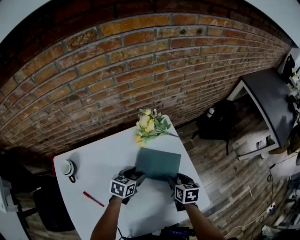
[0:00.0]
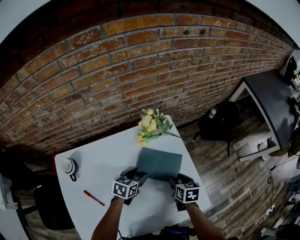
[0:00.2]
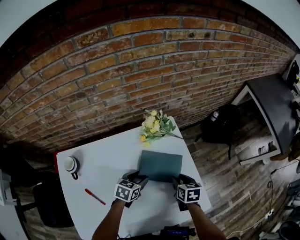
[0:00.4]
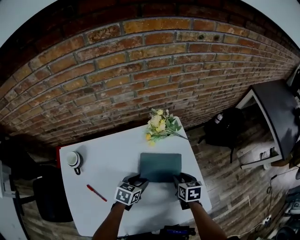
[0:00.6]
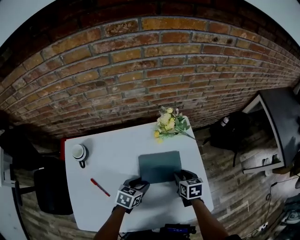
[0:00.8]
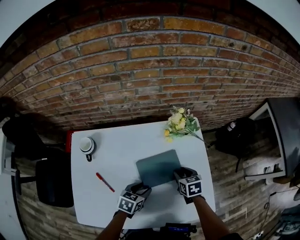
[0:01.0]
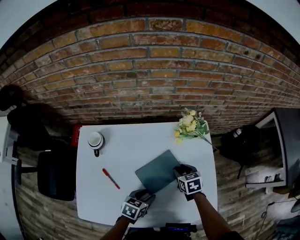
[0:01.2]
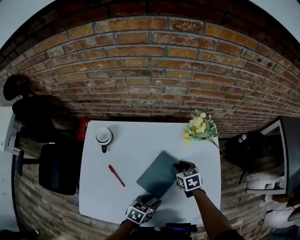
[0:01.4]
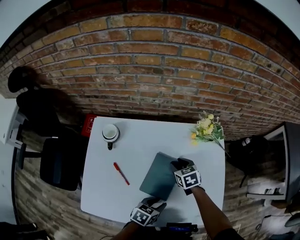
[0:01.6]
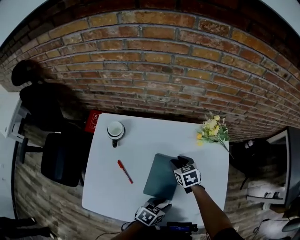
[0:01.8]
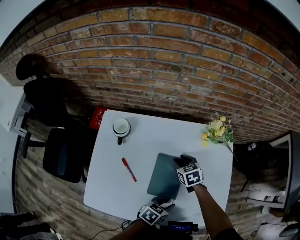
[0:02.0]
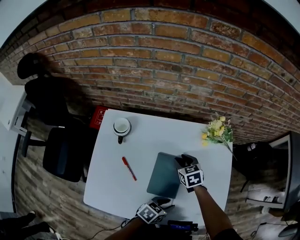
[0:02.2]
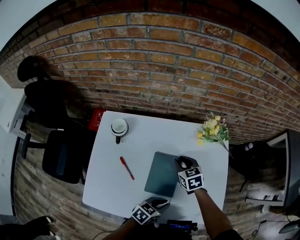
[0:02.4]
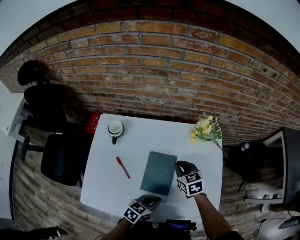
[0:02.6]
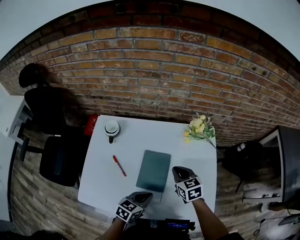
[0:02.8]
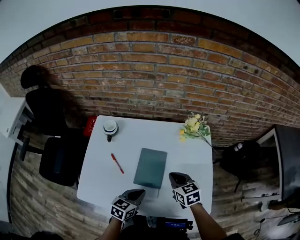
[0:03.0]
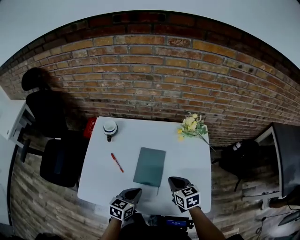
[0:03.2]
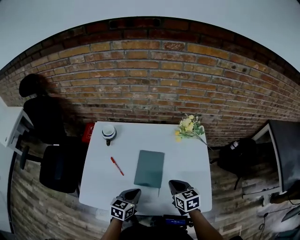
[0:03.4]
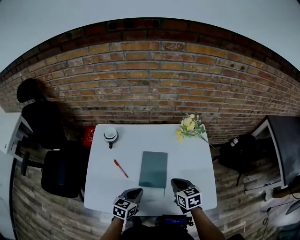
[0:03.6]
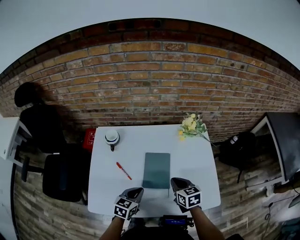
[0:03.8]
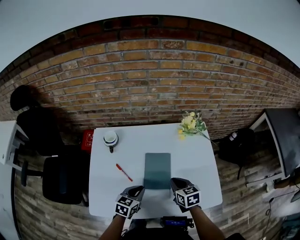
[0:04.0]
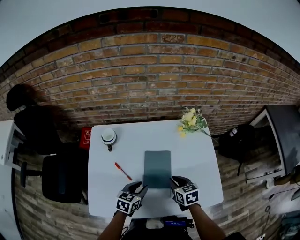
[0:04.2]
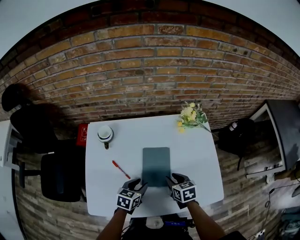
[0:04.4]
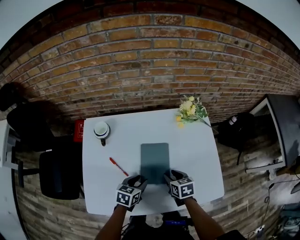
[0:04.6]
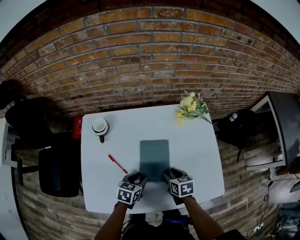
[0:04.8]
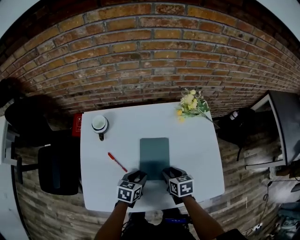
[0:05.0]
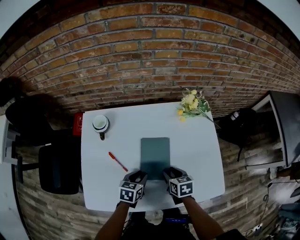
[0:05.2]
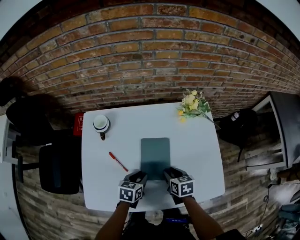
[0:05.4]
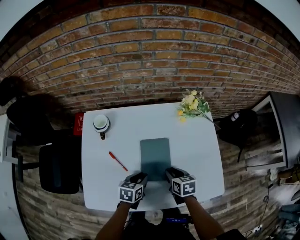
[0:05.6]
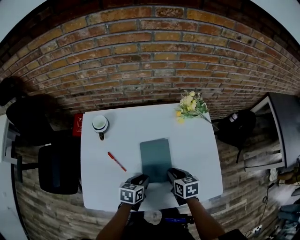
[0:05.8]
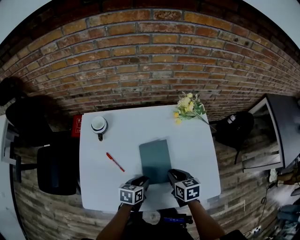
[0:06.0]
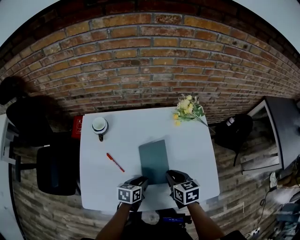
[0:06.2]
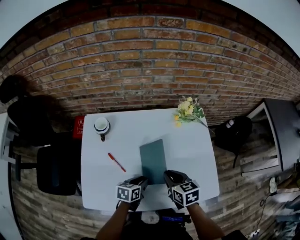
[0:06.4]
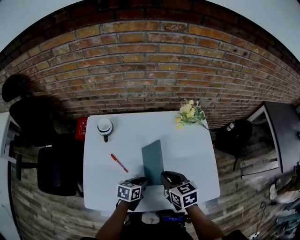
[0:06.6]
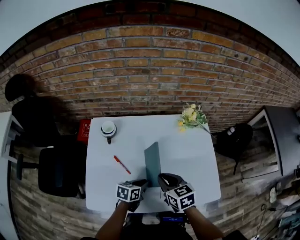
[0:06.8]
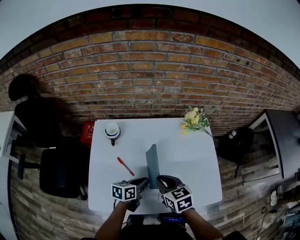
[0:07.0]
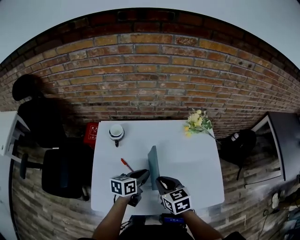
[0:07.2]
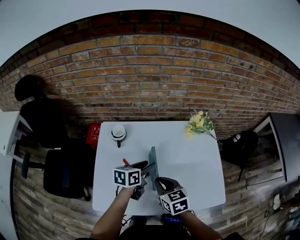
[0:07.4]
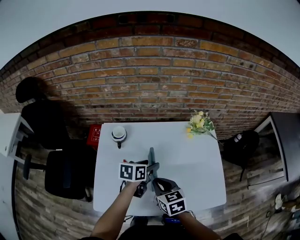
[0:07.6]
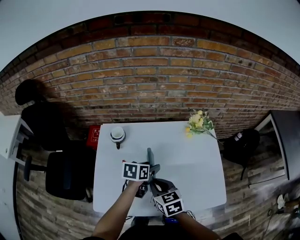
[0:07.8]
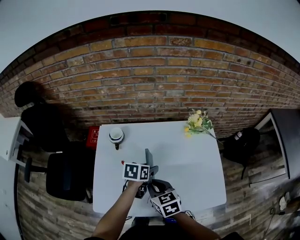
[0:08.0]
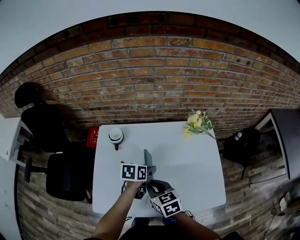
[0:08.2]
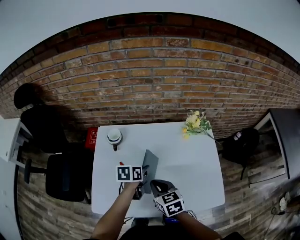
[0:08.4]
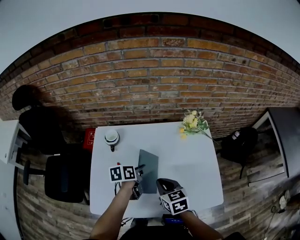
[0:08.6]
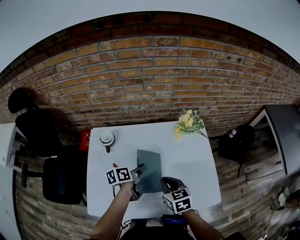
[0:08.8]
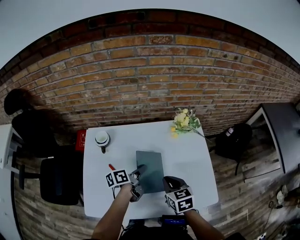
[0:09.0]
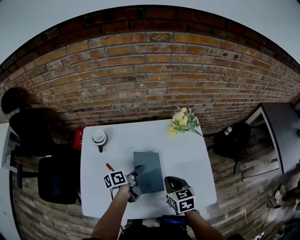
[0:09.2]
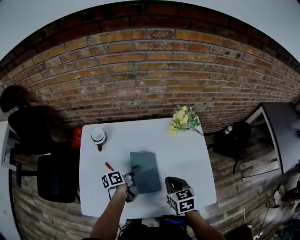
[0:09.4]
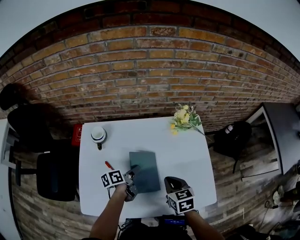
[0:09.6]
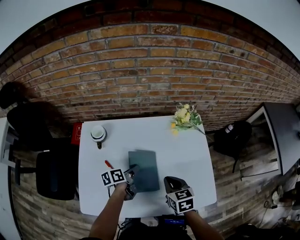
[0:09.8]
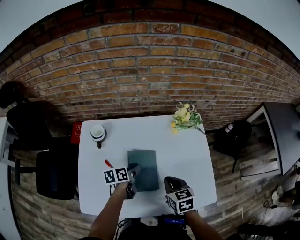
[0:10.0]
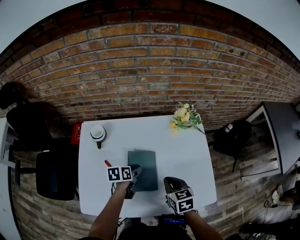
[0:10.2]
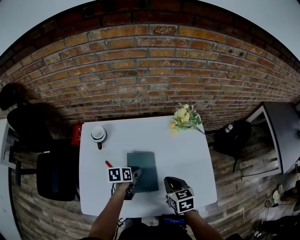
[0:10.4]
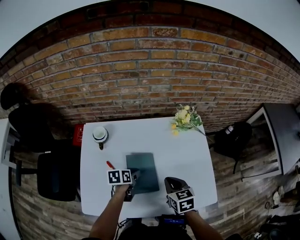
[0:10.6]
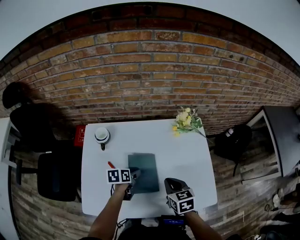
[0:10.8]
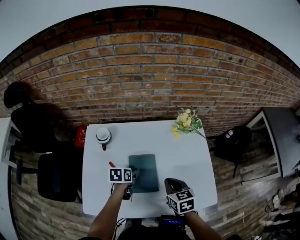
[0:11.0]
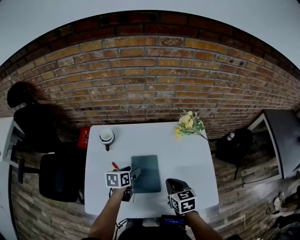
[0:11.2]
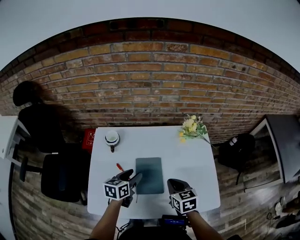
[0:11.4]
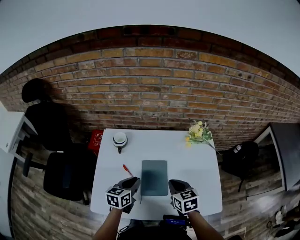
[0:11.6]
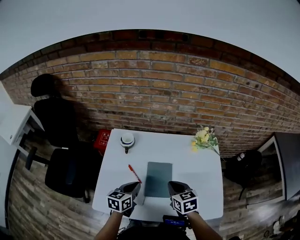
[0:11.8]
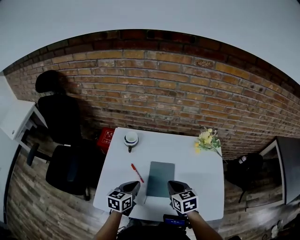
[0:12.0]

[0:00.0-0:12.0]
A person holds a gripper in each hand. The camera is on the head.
0:00.0 to 0:01.6: The right gripper shifts approximately 20 cm to the left, and twists about 40 degrees counterclockwise, seen from behind, while the left gripper is displaced backward by some 20 cm.
0:01.6 to 0:03.0: The left gripper heads upward, covering about 5 cm, turns by approximately 20 degrees, and closes its fingers. The right gripper moves backward, upward and to the right, roughly 15 cm, and closes its fingers.
0:03.0 to 0:04.4: The left gripper moves to the left and forward, approximately 10 cm, and opens its fingers. Meanwhile the right gripper shifts about 5 cm downward, swivels roughly 20 degrees, and opens.
0:04.4 to 0:06.0: There are only small adjustments of the grippers.
0:06.0 to 0:07.6: The left gripper moves upward, forward and to the left, some 15 cm, and opens up; the right gripper moves to the left and upward, about 20 cm.
0:07.6 to 0:09.0: The right gripper shifts some 10 cm to the right. The left gripper moves roughly 5 cm, swivels approximately 30 degrees, and closes up.
0:09.0 to 0:10.4: The left gripper shifts roughly 10 cm downward, changes its angle by approximately 30 degrees, and opens up.
0:10.4 to 0:12.0: The left gripper is displaced upward, backward and to the left by about 15 cm, changes its angle by some 40 degrees, and closes its fingers. Meanwhile the right gripper shifts roughly 10 cm to the left.

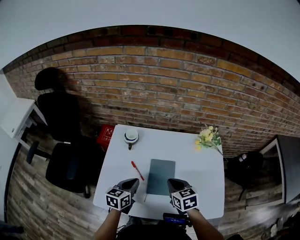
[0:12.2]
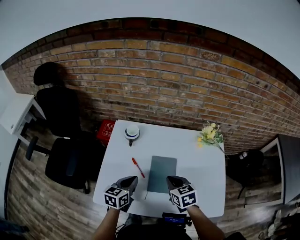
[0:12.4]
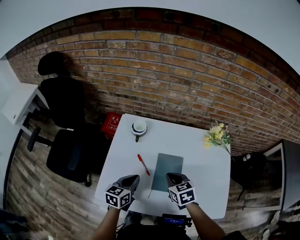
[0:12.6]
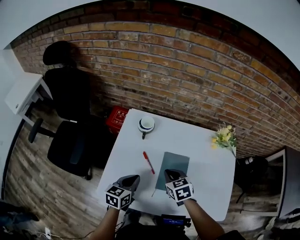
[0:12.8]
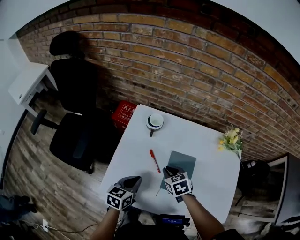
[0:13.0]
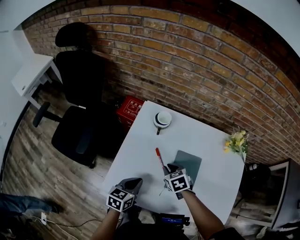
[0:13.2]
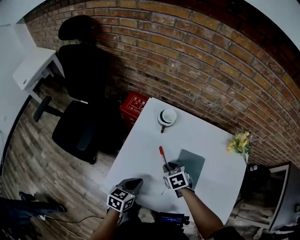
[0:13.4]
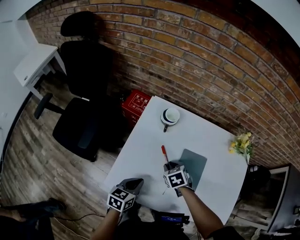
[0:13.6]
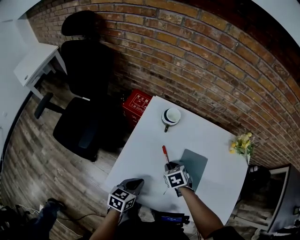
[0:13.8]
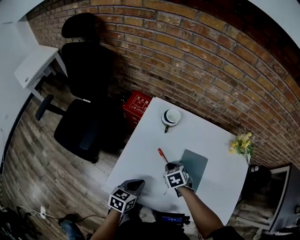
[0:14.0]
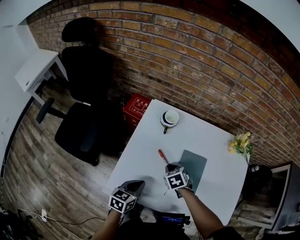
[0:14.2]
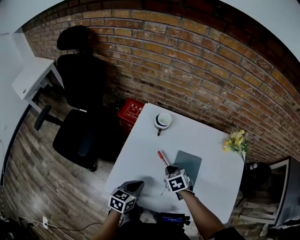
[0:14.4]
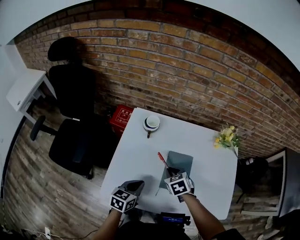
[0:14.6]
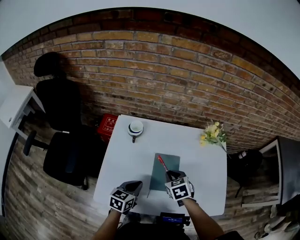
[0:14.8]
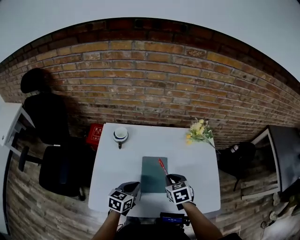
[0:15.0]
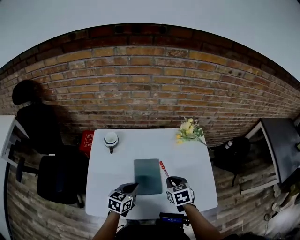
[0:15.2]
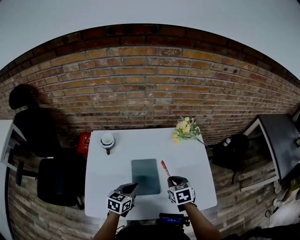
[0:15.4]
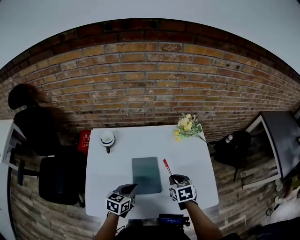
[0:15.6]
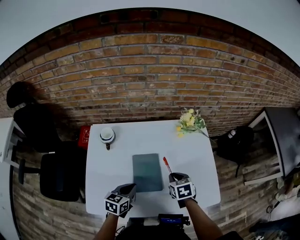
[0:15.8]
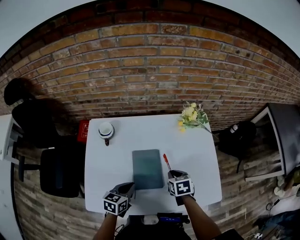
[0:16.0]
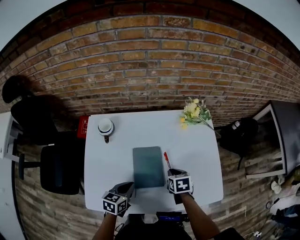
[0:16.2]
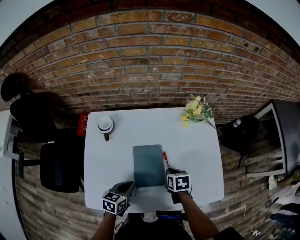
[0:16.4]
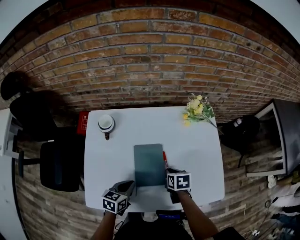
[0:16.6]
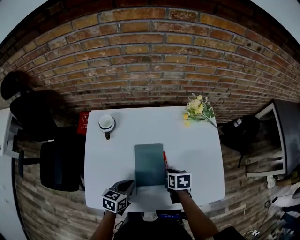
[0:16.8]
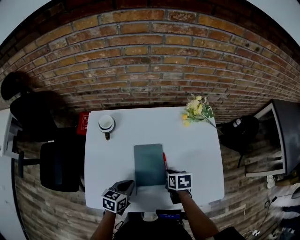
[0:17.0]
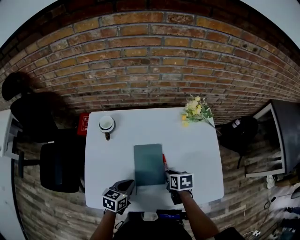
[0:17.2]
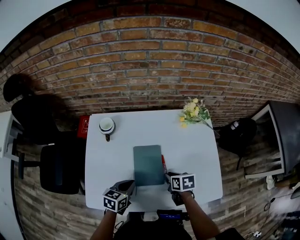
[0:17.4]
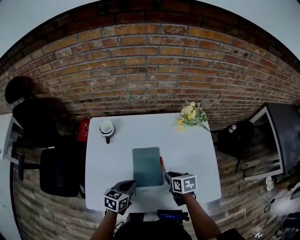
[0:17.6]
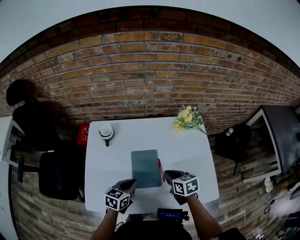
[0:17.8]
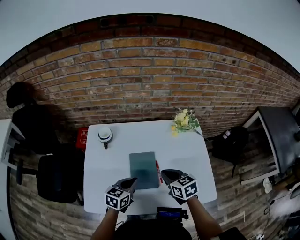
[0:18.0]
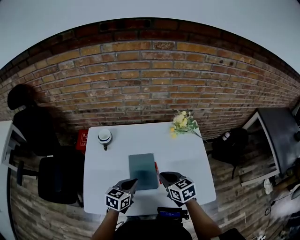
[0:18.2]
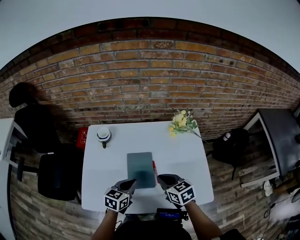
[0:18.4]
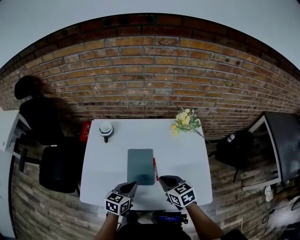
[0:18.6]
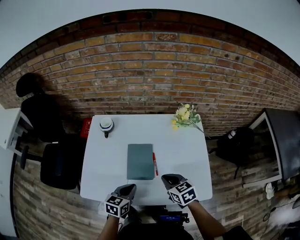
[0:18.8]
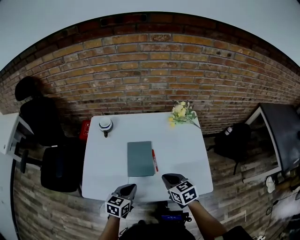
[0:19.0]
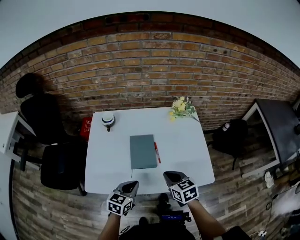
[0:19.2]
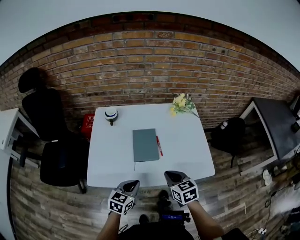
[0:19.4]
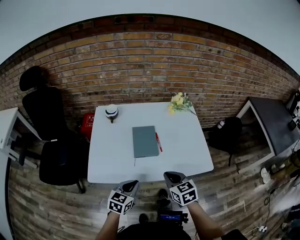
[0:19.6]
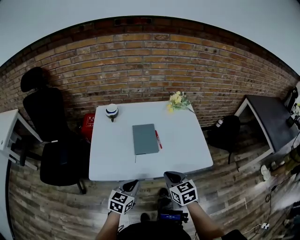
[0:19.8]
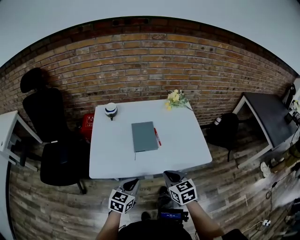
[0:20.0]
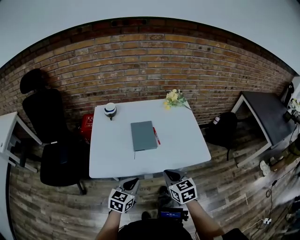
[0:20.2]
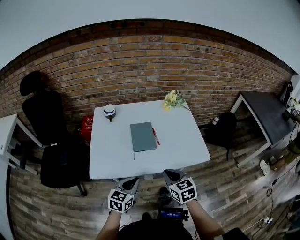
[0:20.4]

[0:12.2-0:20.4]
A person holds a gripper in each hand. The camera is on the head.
0:12.2 to 0:13.8: The left gripper heads to the left, downward and backward, covering roughly 15 cm, while the right gripper travels to the left, downward and forward by some 20 cm, and changes its angle by approximately 30 degrees.
0:13.8 to 0:15.4: The right gripper is displaced to the right and upward by about 30 cm, and swivels about 40 degrees. Meanwhile the left gripper is displaced to the right by roughly 20 cm, and rotates some 20 degrees.
0:15.4 to 0:17.2: The left gripper goes approximately 5 cm downward; the right gripper is displaced downward by some 10 cm, and rotates approximately 30 degrees.
0:17.2 to 0:18.8: The left gripper travels backward and to the right by some 10 cm; the right gripper is displaced upward and backward by some 15 cm, and turns by roughly 40 degrees.
0:18.8 to 0:20.4: Both grippers travel together backward, approximately 20 cm.

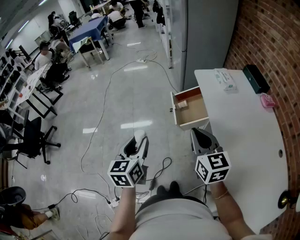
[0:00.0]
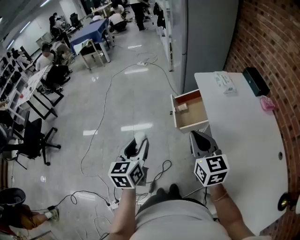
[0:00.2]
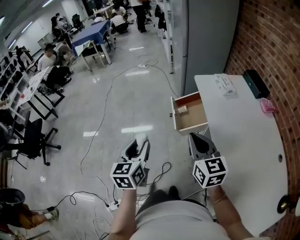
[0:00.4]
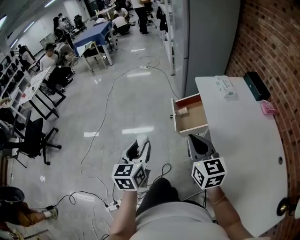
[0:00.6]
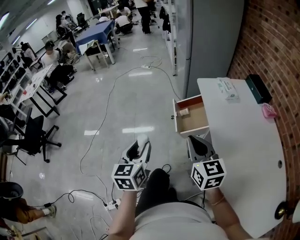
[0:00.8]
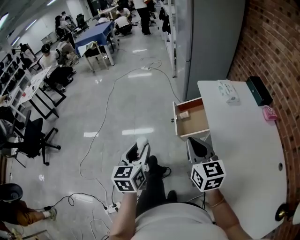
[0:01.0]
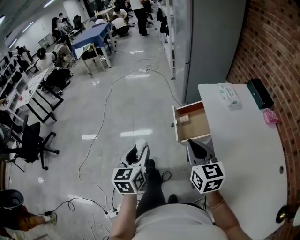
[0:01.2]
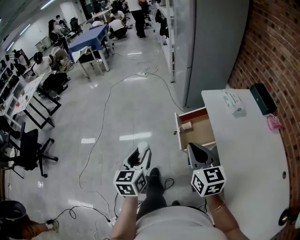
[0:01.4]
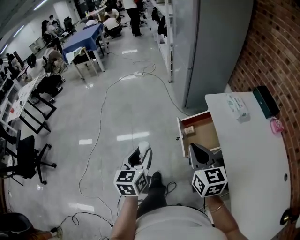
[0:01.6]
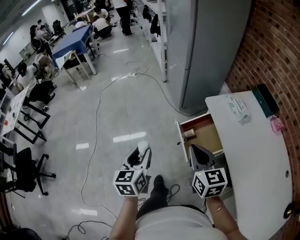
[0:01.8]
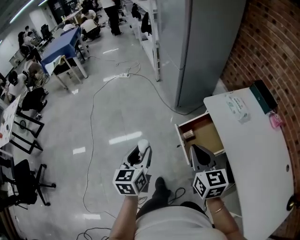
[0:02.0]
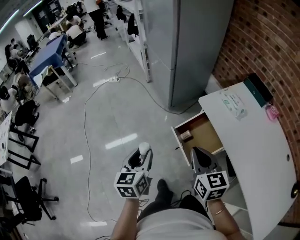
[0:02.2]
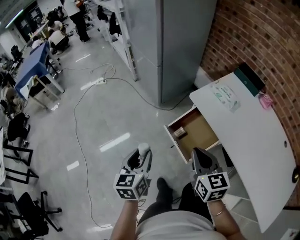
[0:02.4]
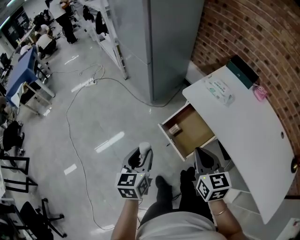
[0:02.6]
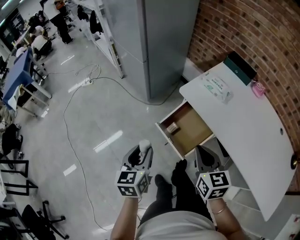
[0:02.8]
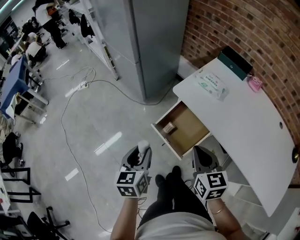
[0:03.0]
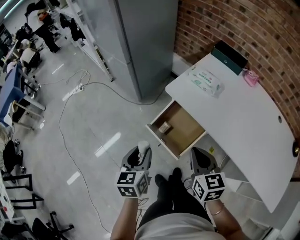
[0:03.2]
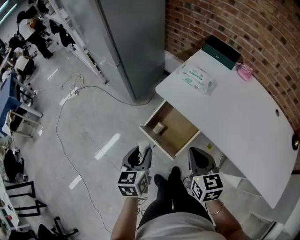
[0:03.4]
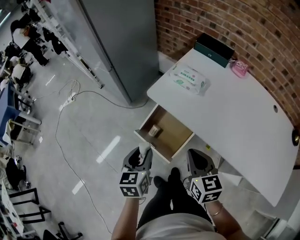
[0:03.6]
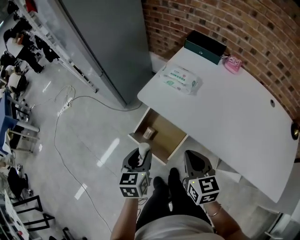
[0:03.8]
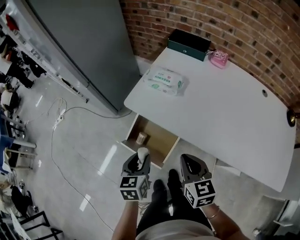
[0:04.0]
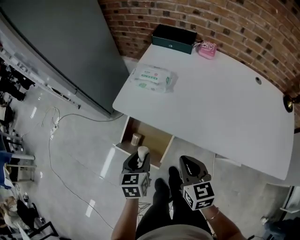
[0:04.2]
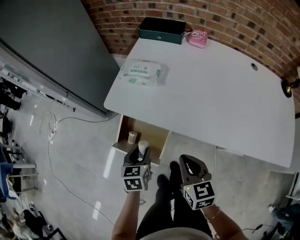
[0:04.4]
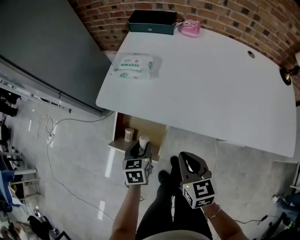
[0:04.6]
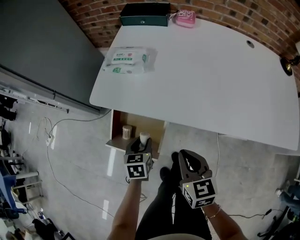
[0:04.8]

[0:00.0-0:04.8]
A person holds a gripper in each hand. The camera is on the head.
0:00.0 to 0:01.6: The two grippers go roughly 20 cm forward.
0:01.6 to 0:03.2: The left gripper shifts by some 25 cm, and turns by about 40 degrees; the right gripper changes place by some 15 cm, and changes its angle by approximately 40 degrees.
0:03.2 to 0:04.8: The left gripper shifts by about 35 cm, and changes its angle by roughly 40 degrees, while the right gripper ends up some 20 cm from where it was, and rotates about 30 degrees.
